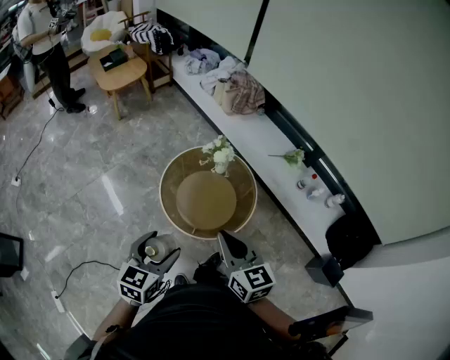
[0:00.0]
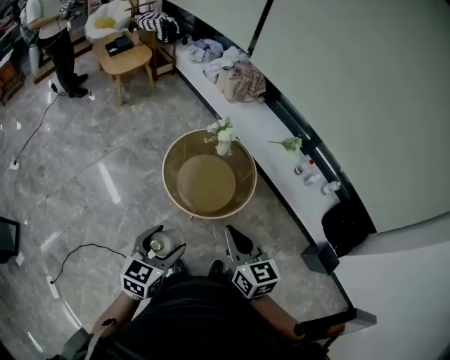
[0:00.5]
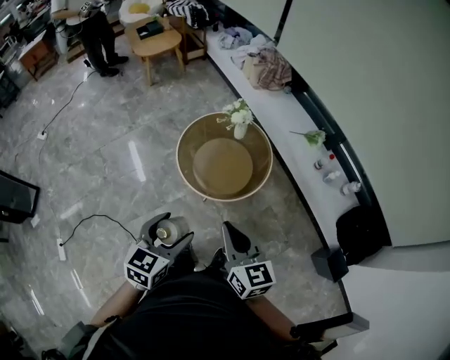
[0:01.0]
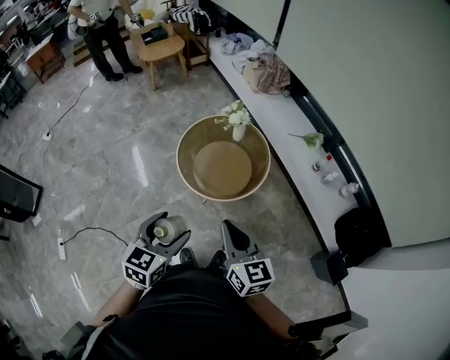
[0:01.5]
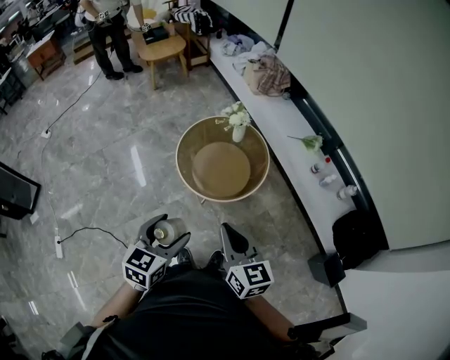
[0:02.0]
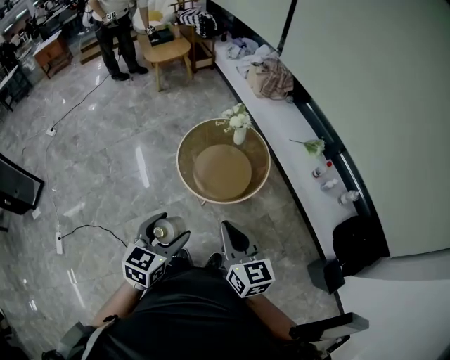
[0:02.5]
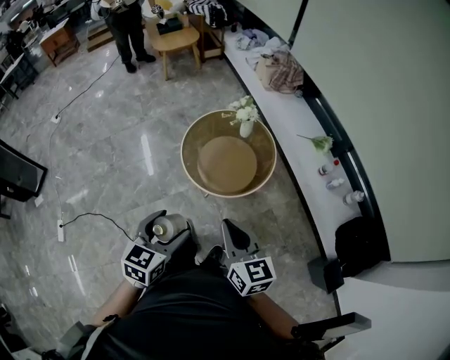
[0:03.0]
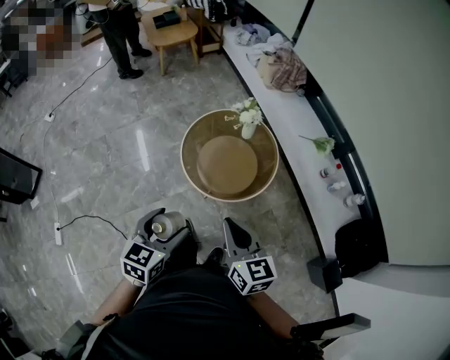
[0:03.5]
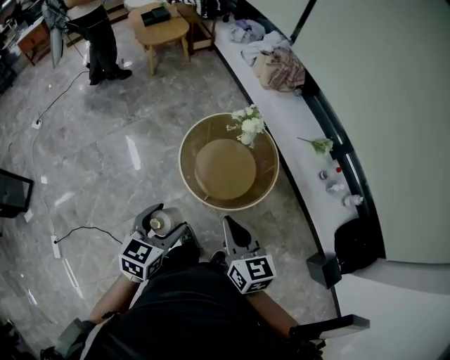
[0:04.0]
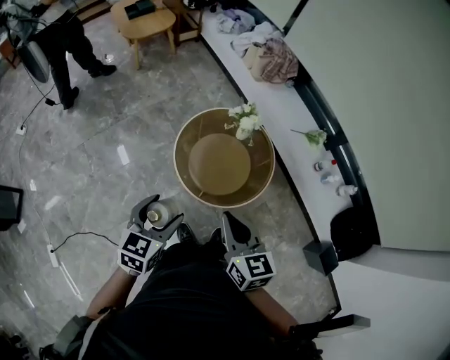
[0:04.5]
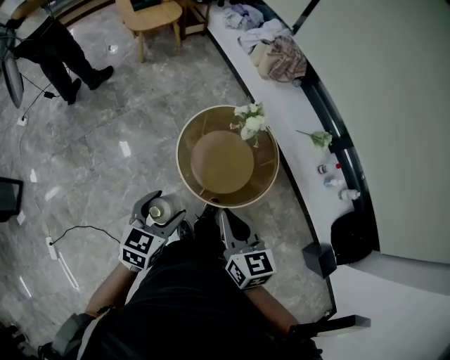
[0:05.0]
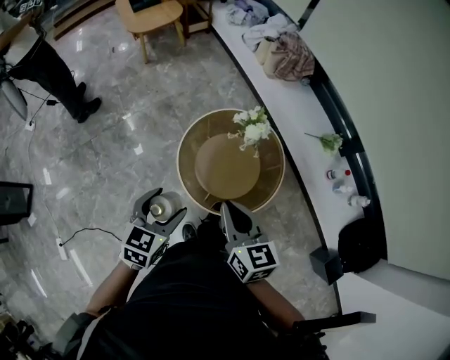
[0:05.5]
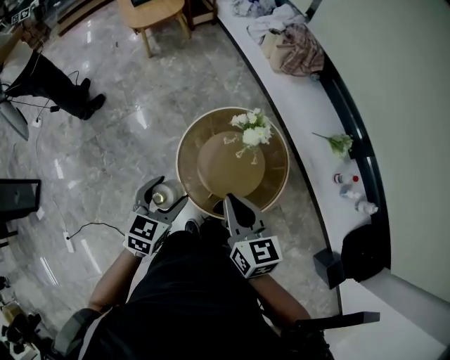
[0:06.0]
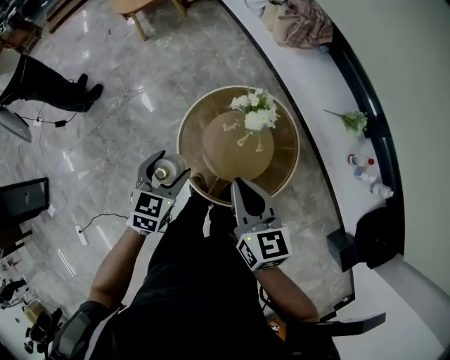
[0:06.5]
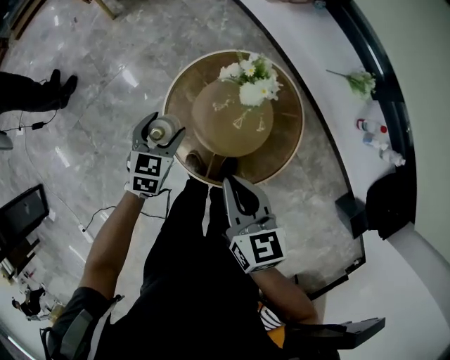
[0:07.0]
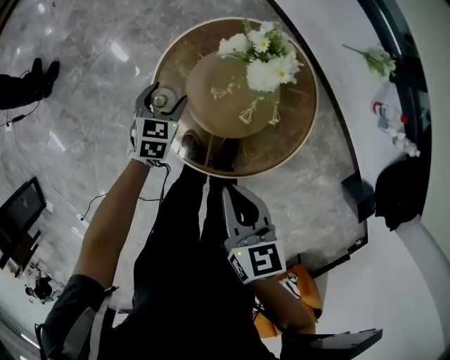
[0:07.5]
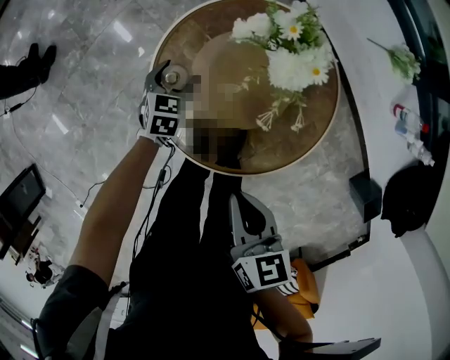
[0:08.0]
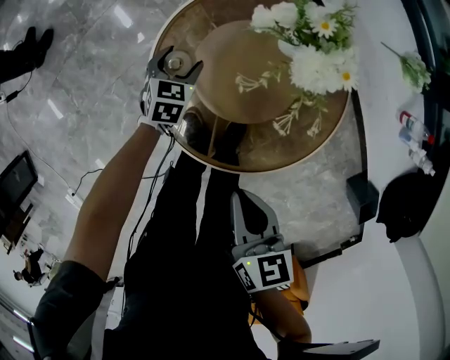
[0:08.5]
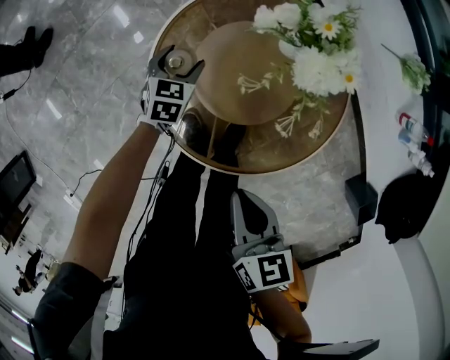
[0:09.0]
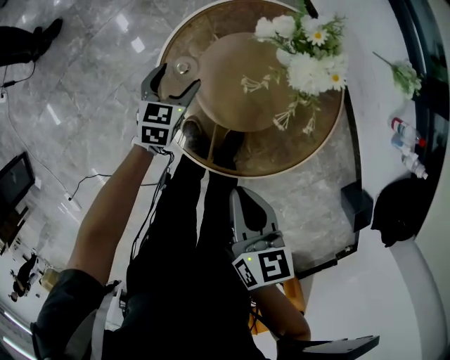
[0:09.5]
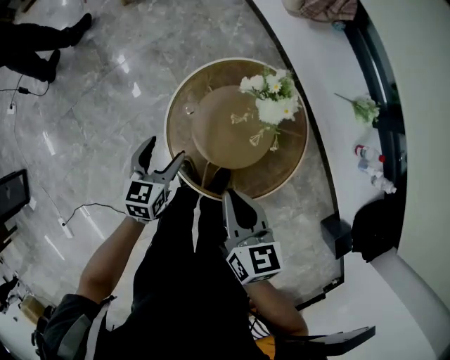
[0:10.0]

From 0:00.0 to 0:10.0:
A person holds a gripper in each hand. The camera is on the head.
From 0:00.0 to 0:02.0: The grippers both shift backward and to the right by approximately 20 cm.
From 0:02.0 to 0:04.0: The two grippers go roughly 15 cm forward and to the left.
From 0:04.0 to 0:06.0: Both grippers travel together forward, roughly 25 cm.
From 0:06.0 to 0:08.0: The right gripper goes about 25 cm downward, and rotates approximately 30 degrees, while the left gripper heads downward and forward, covering about 50 cm.
From 0:08.0 to 0:10.0: The left gripper heads upward and backward, covering about 25 cm, and swivels roughly 20 degrees. The right gripper heads upward, covering approximately 10 cm.

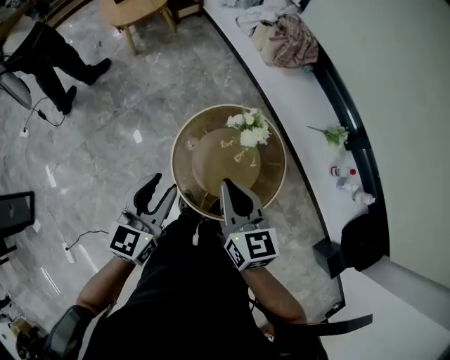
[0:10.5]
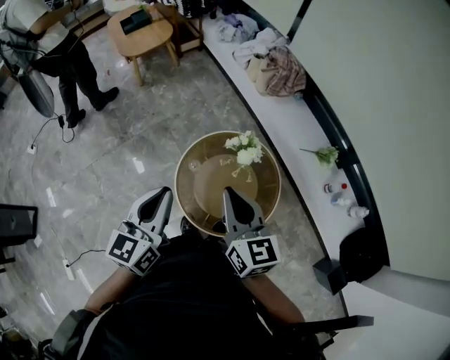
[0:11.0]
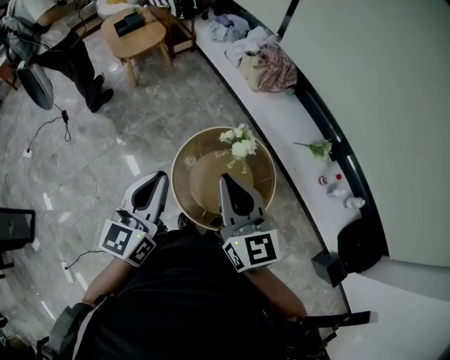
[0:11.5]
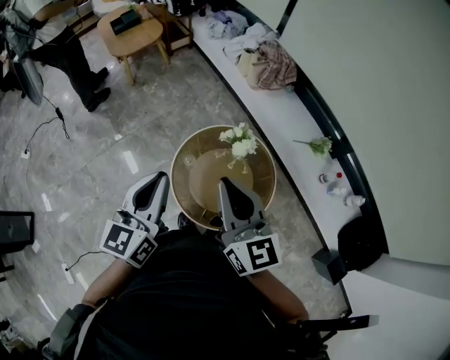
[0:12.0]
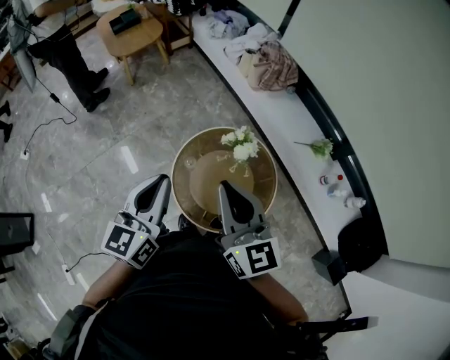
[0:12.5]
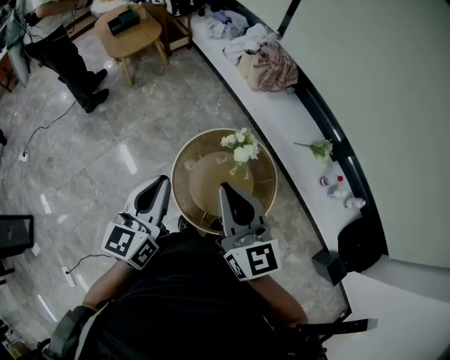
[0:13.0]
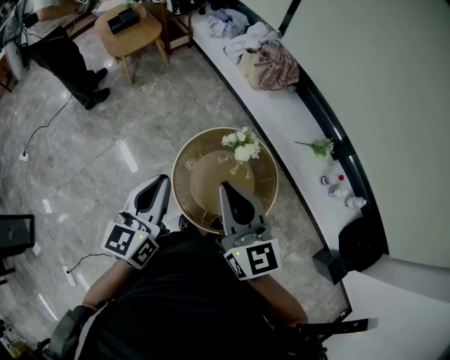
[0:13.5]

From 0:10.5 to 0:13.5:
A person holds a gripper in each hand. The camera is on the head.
From 0:10.5 to 0:12.0: Both grippers travel together upward, about 15 cm. The right gripper swivels approximately 20 degrees, while the left gripper closes.
From 0:12.0 to 0:13.5: There are only small adjustments of the grippers.

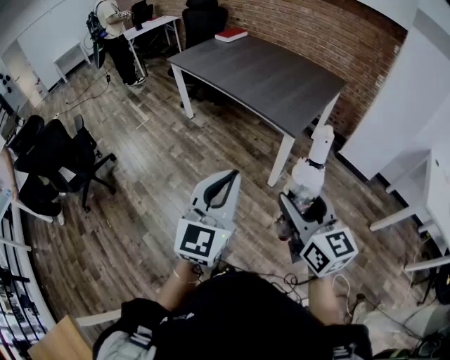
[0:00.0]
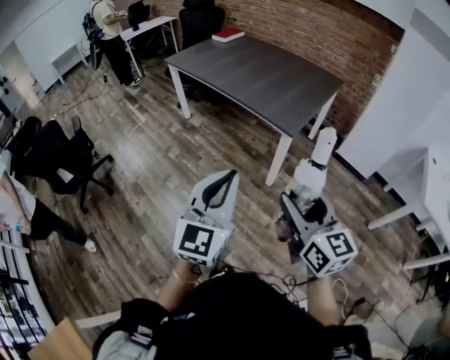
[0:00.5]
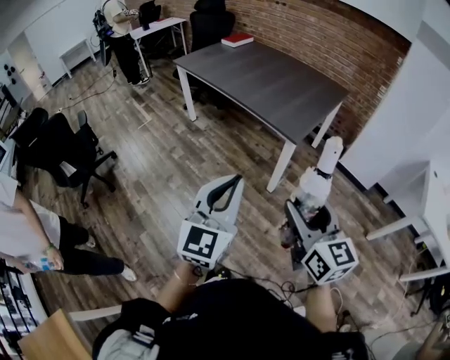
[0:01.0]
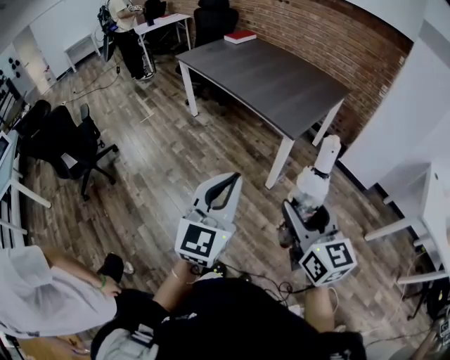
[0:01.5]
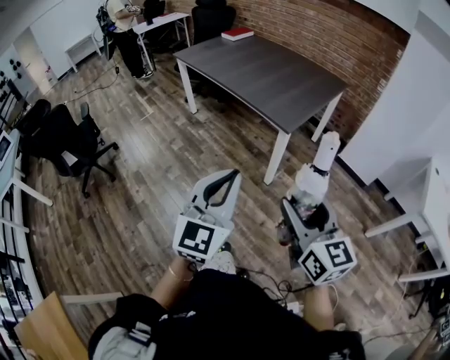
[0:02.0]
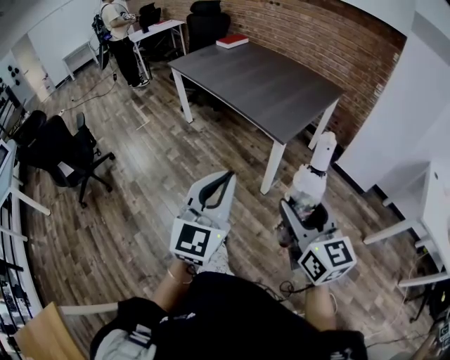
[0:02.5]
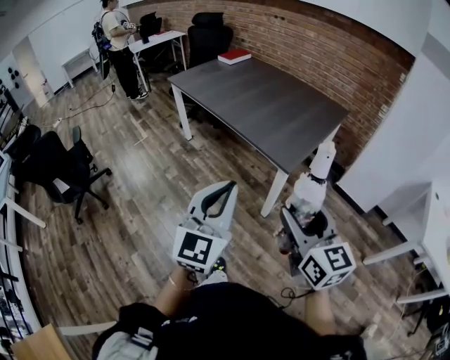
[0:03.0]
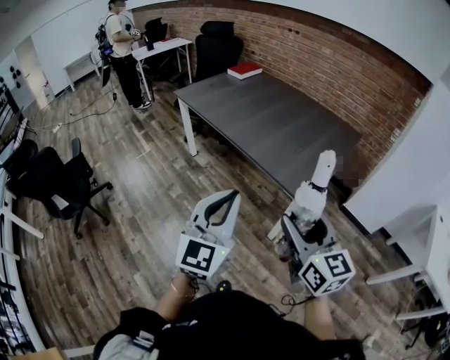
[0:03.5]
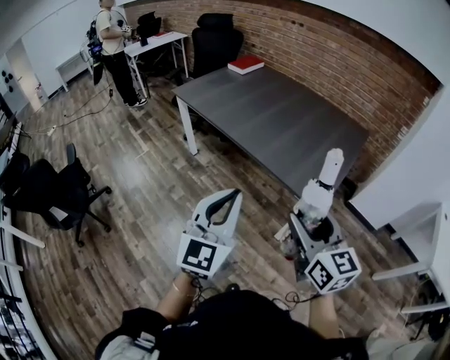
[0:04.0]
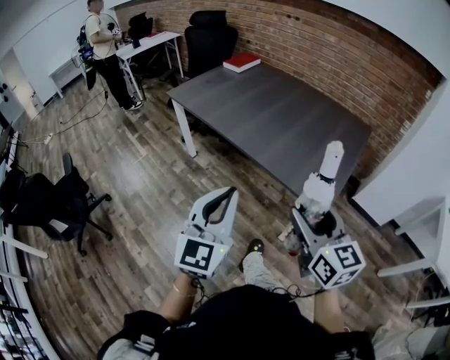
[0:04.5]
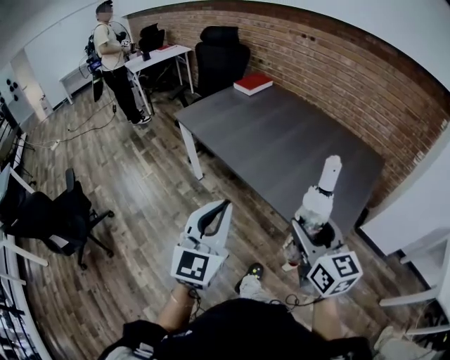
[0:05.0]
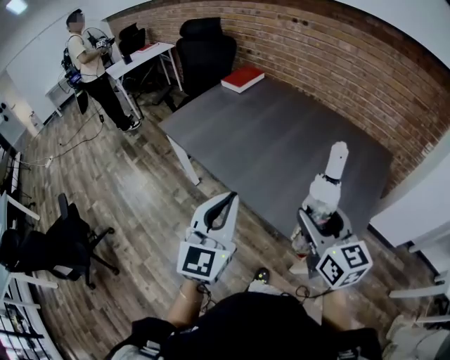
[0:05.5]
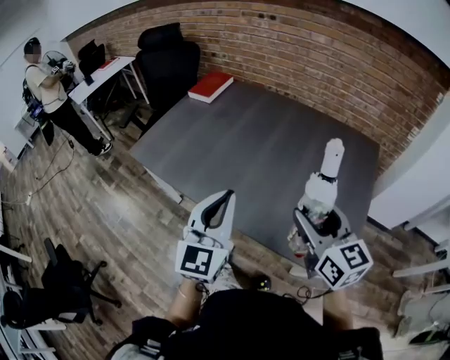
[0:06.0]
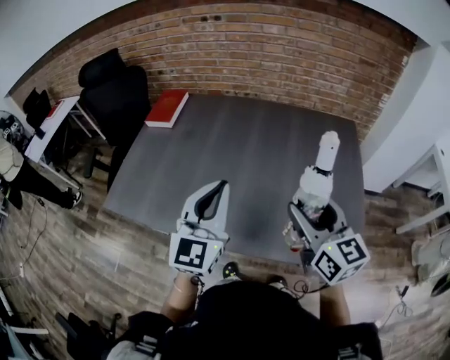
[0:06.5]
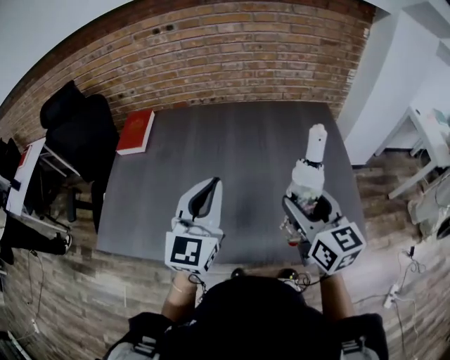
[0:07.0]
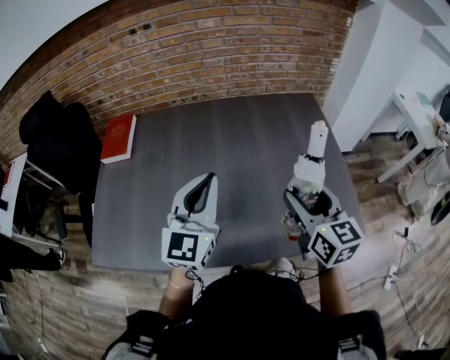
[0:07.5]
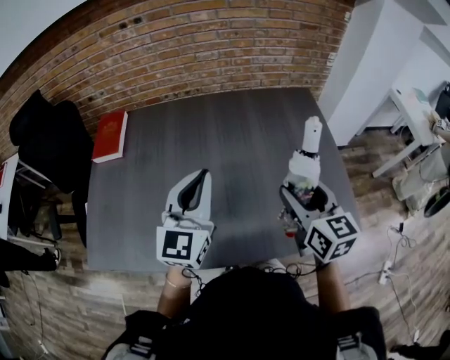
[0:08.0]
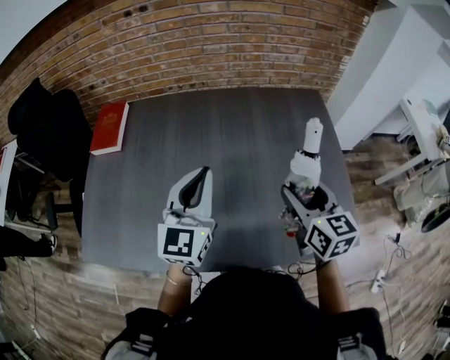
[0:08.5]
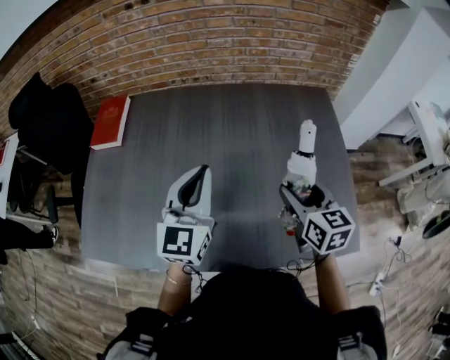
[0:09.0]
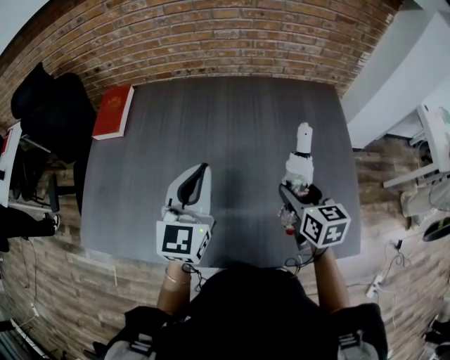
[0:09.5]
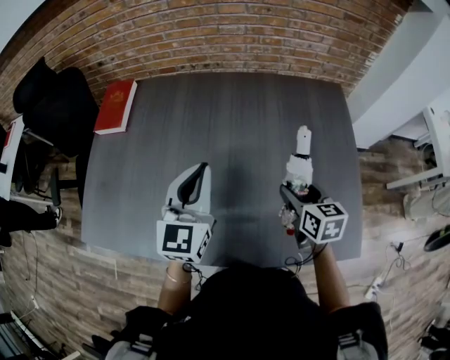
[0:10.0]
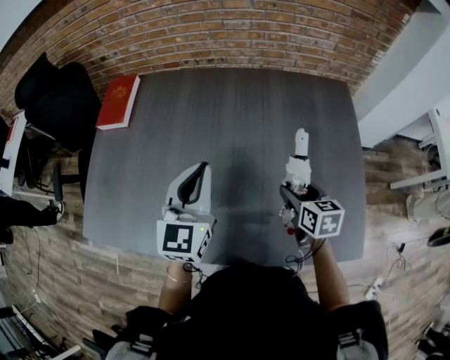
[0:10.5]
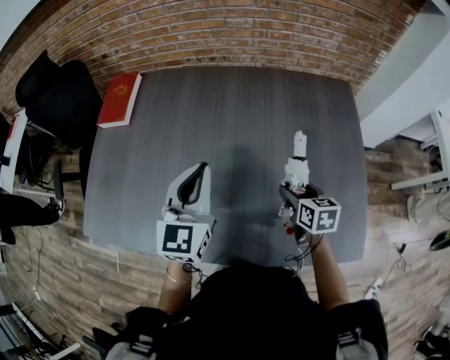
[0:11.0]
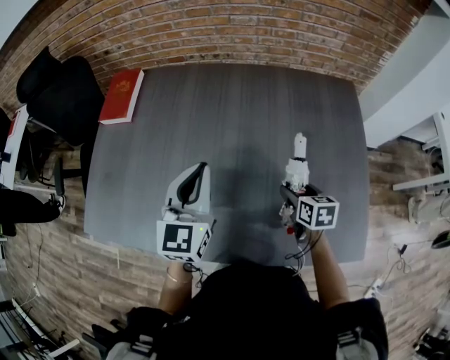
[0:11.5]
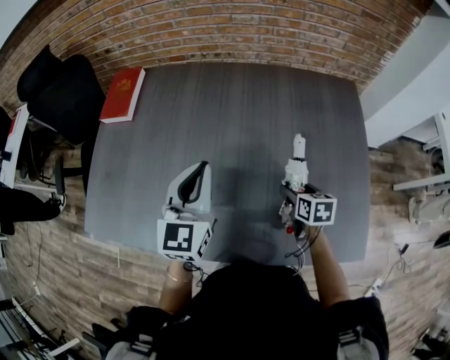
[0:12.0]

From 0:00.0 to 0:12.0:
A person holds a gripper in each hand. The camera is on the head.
From 0:00.0 to 0:02.0: The grippers both shift to the right by some 5 cm.
From 0:02.0 to 0:04.0: The right gripper goes about 35 cm forward; the left gripper goes approximately 40 cm forward and to the left.
From 0:04.0 to 0:06.0: The two grippers travel together, forward, roughly 40 cm.
From 0:06.0 to 0:08.0: The right gripper moves approximately 15 cm, and turns by approximately 40 degrees. The left gripper ends up approximately 25 cm from where it was, and changes its angle by roughly 30 degrees.
From 0:08.0 to 0:10.0: The right gripper goes approximately 20 cm downward and forward, and changes its angle by about 20 degrees; the left gripper heads forward and downward, covering some 10 cm.
From 0:10.0 to 0:12.0: The right gripper goes approximately 10 cm downward.

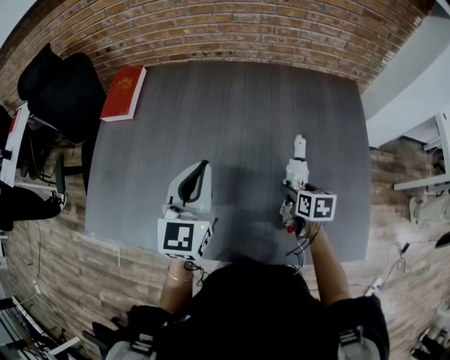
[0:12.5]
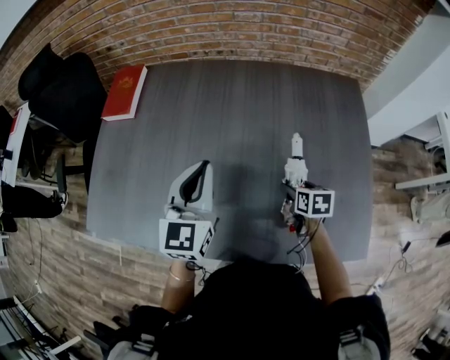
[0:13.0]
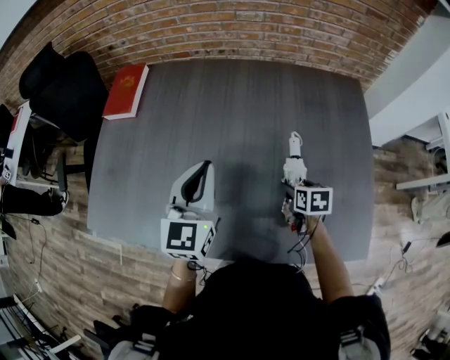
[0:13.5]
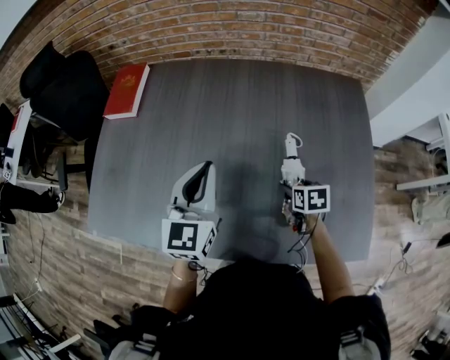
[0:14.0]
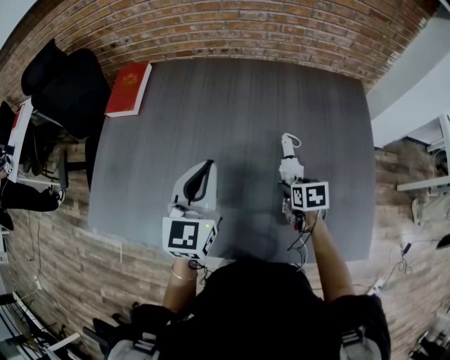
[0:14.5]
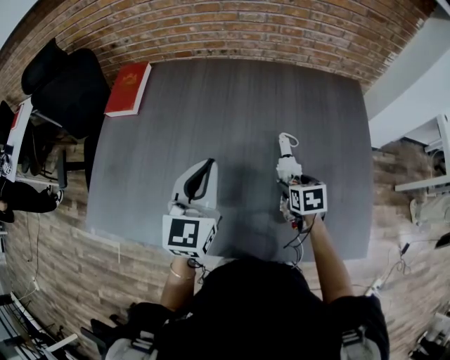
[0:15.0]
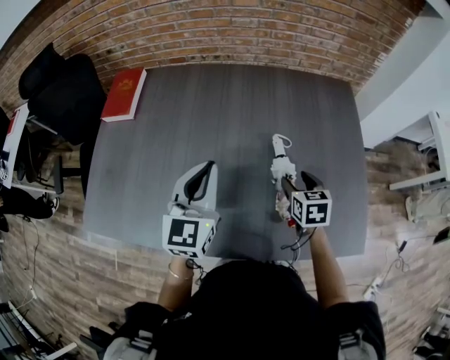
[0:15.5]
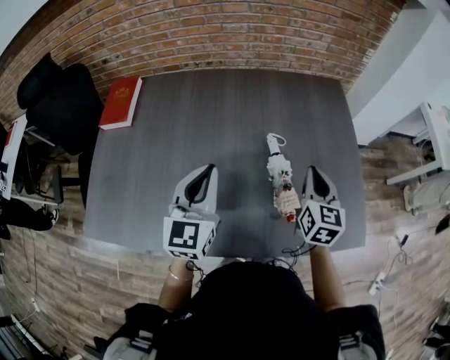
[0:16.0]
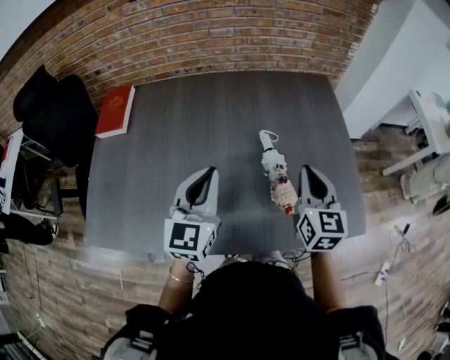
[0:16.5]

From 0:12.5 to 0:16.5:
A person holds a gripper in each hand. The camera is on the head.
From 0:12.5 to 0:14.5: The grippers make only small movements.
From 0:14.5 to 0:16.5: The right gripper shifts approximately 25 cm upward, angles its fingers upward, by approximately 50 degrees, and closes, while the left gripper goes approximately 5 cm backward.
